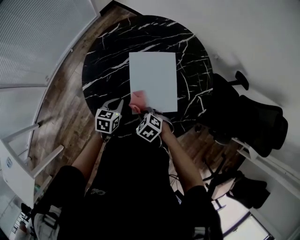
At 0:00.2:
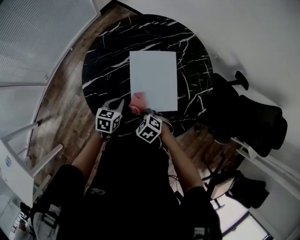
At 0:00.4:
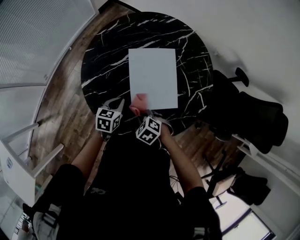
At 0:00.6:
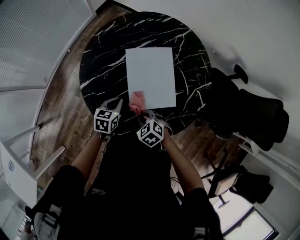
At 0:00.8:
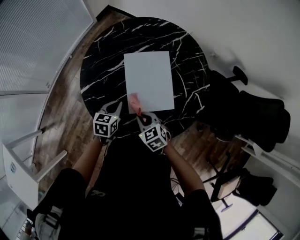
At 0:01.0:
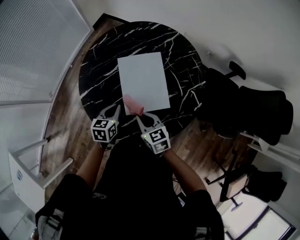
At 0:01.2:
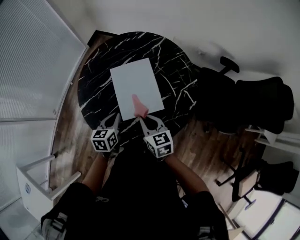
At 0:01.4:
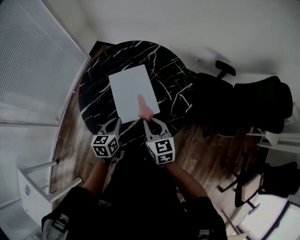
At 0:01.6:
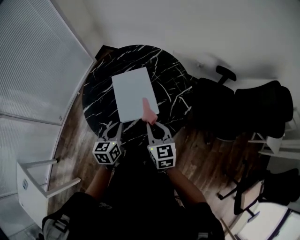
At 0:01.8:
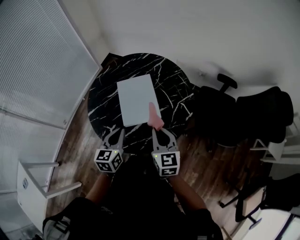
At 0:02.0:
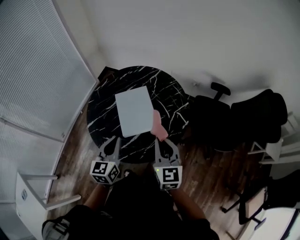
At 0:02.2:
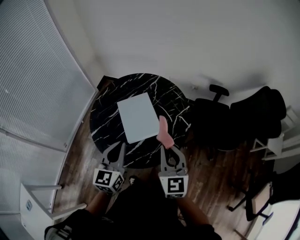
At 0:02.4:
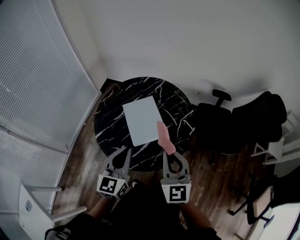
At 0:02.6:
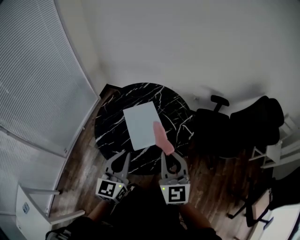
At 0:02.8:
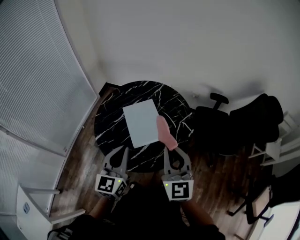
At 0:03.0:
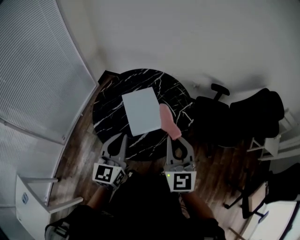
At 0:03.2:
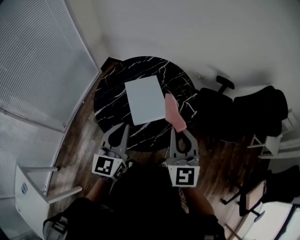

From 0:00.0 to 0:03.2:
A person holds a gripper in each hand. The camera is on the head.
From 0:00.0 to 0:01.6: The left gripper shifts some 20 cm upward, backward and to the right. The right gripper is displaced upward and to the right by roughly 25 cm, and tips its fingers upward by approximately 50 degrees.
From 0:01.6 to 0:03.2: The right gripper moves upward and backward, some 20 cm, and swivels approximately 30 degrees; the left gripper heads upward, covering about 20 cm, and turns by about 30 degrees.

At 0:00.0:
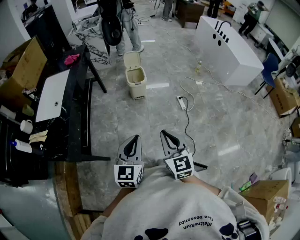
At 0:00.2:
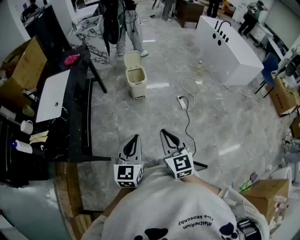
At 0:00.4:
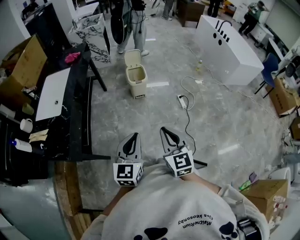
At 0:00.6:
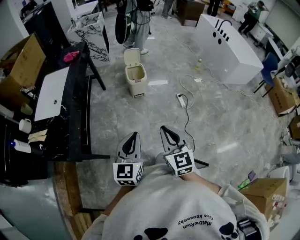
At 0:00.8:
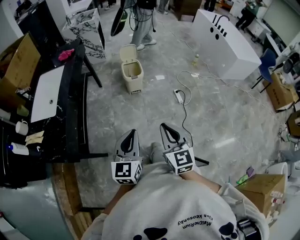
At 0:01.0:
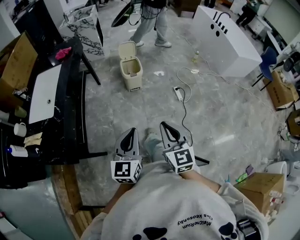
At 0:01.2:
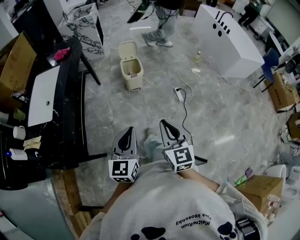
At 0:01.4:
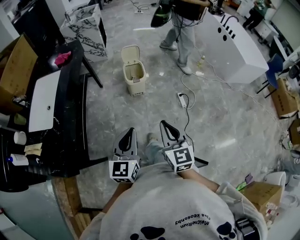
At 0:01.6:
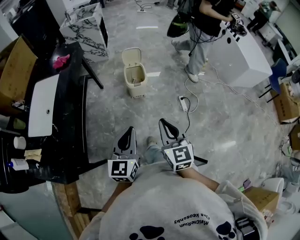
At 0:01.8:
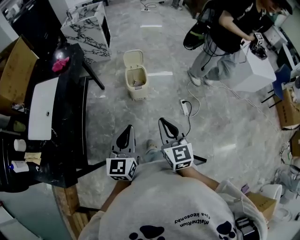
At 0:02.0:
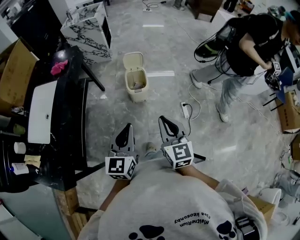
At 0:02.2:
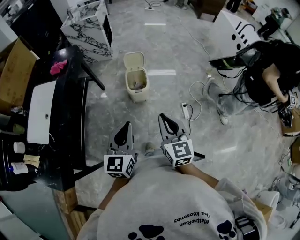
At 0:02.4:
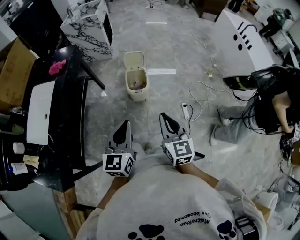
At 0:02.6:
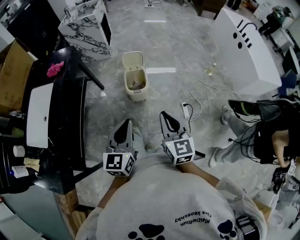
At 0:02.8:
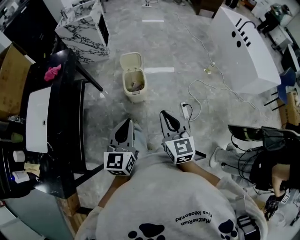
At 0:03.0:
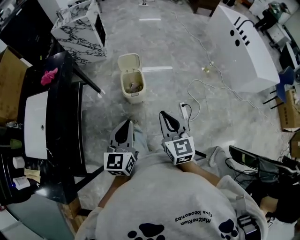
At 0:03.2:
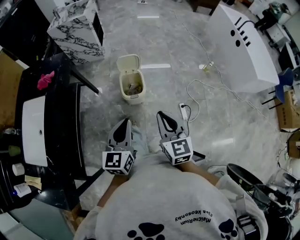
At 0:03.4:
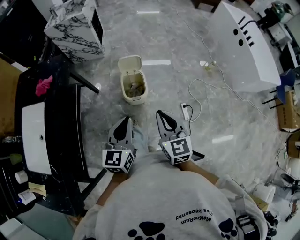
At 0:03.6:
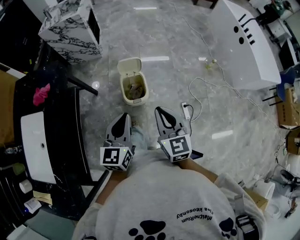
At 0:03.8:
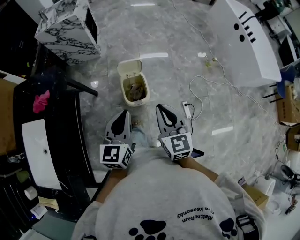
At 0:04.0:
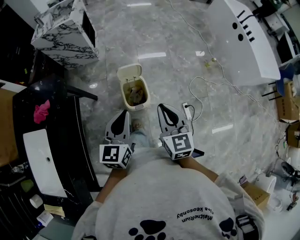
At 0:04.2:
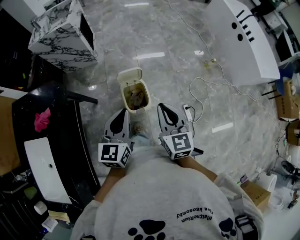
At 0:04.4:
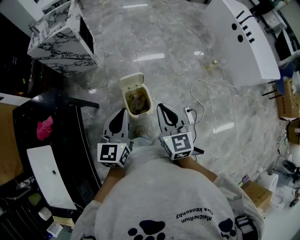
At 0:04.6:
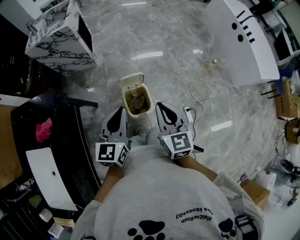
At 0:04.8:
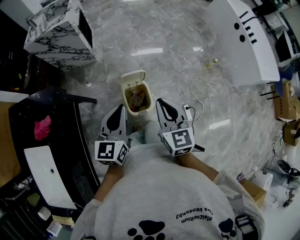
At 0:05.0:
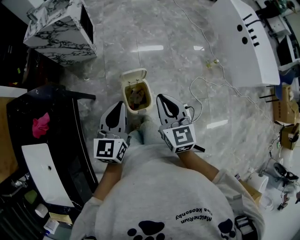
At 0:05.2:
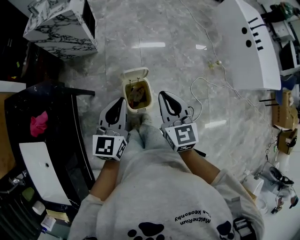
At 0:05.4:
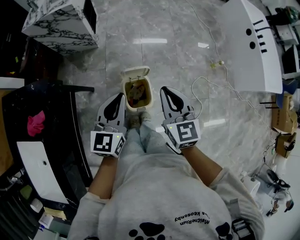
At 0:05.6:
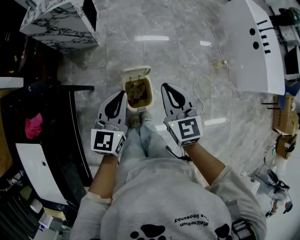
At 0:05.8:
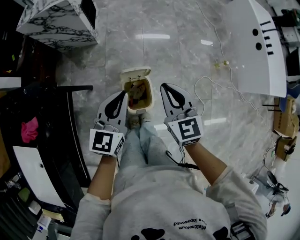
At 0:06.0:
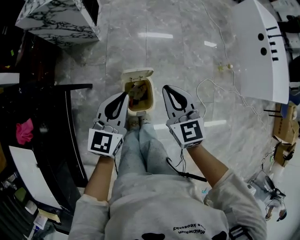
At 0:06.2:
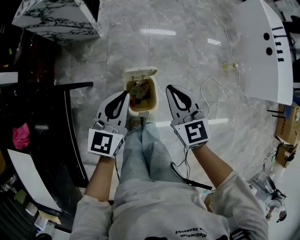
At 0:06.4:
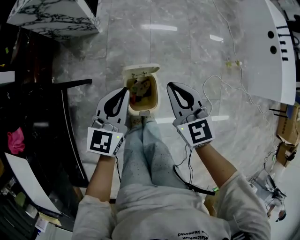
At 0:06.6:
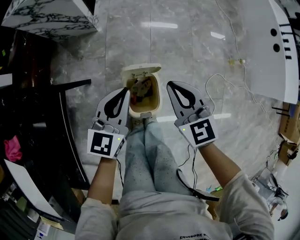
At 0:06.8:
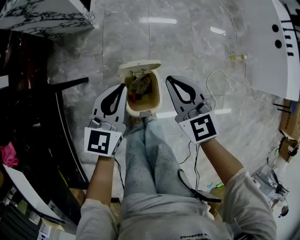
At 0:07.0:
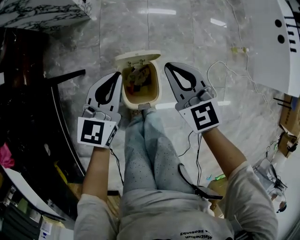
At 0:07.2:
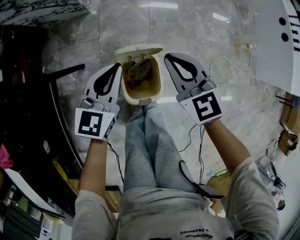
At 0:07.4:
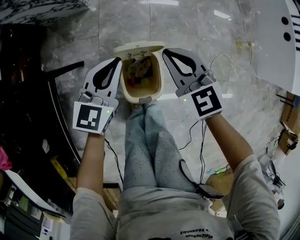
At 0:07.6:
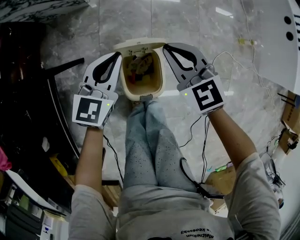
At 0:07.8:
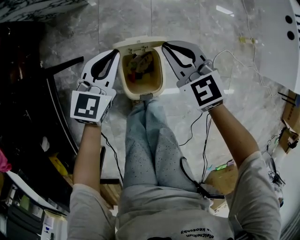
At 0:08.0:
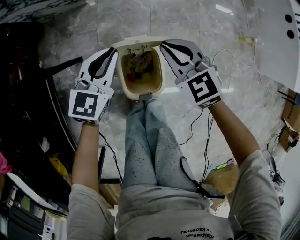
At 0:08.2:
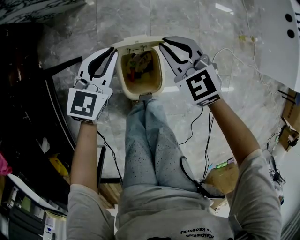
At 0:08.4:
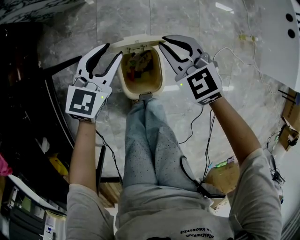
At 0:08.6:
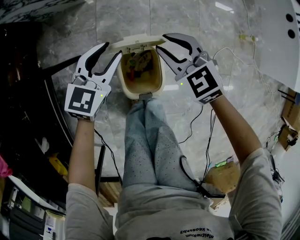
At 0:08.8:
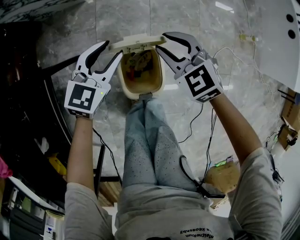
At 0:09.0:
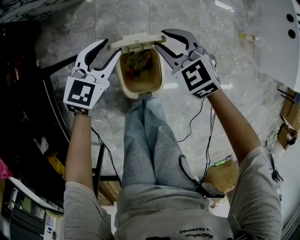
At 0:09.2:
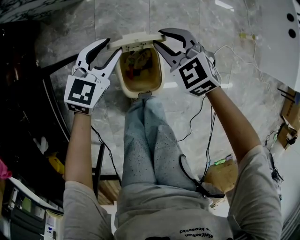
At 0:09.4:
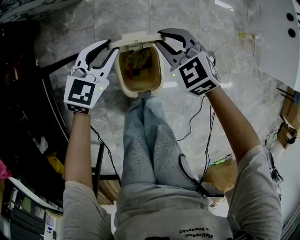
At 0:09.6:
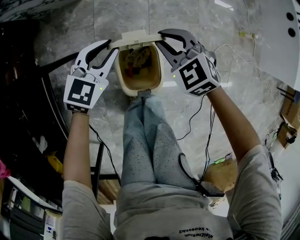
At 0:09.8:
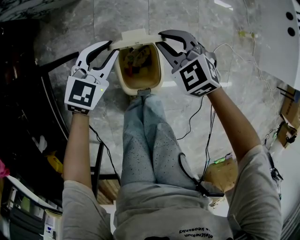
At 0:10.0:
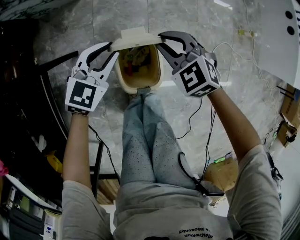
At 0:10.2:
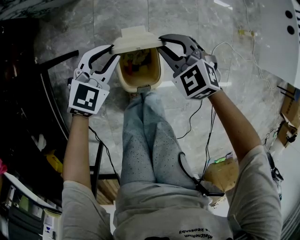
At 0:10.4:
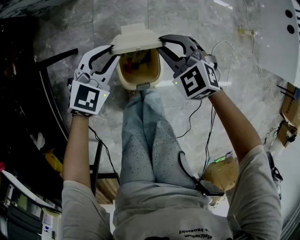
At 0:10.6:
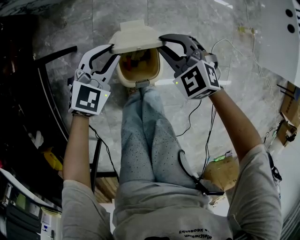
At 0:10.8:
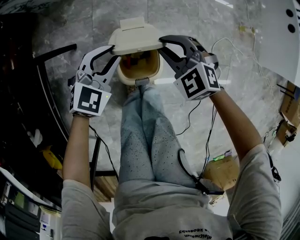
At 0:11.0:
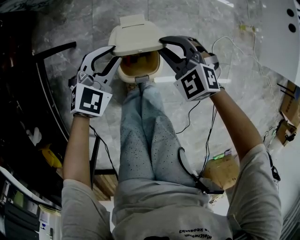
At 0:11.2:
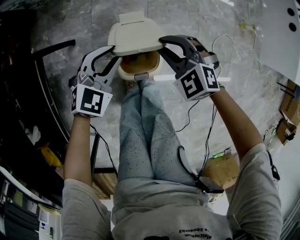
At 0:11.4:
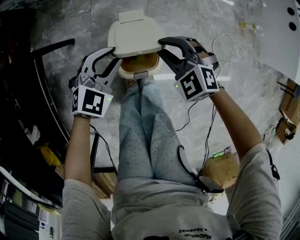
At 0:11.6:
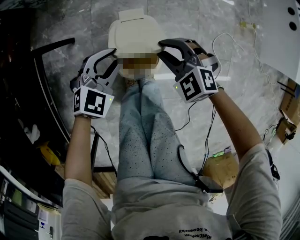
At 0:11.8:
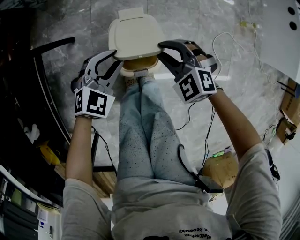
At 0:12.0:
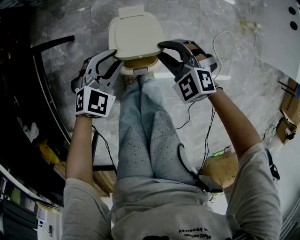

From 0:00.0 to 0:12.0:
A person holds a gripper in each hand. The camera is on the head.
From 0:00.0 to 0:01.6: The two grippers go approximately 25 cm forward.
From 0:01.6 to 0:03.0: The two grippers go approximately 20 cm forward.
From 0:03.0 to 0:04.4: The grippers both shift forward by approximately 35 cm.
From 0:04.4 to 0:06.0: The grippers both shift forward and downward by some 20 cm.
From 0:06.0 to 0:07.6: The grippers both shift downward and forward by roughly 25 cm. The right gripper swivels about 20 degrees.
From 0:07.6 to 0:09.0: Both grippers travel together downward, some 5 cm. The left gripper opens its fingers. Meanwhile the right gripper opens up.
From 0:09.0 to 0:10.4: Both grippers travel together backward, some 5 cm.
From 0:10.4 to 0:12.0: Both grippers travel together backward, some 10 cm.

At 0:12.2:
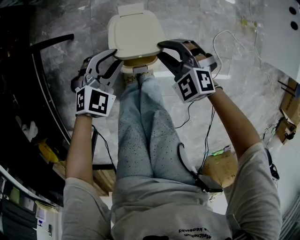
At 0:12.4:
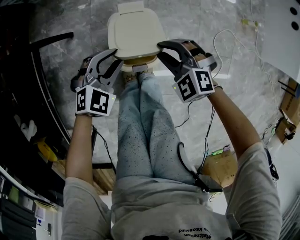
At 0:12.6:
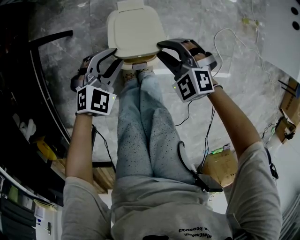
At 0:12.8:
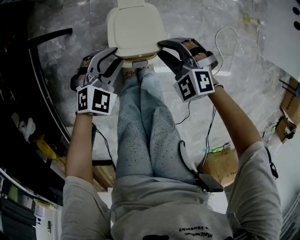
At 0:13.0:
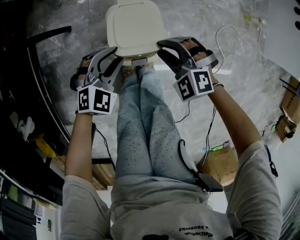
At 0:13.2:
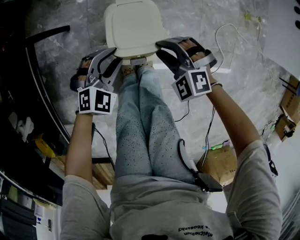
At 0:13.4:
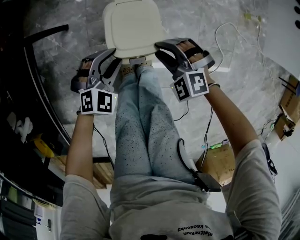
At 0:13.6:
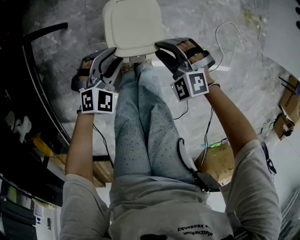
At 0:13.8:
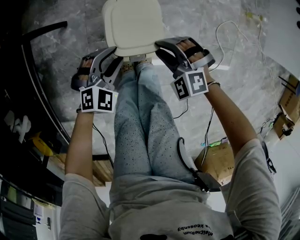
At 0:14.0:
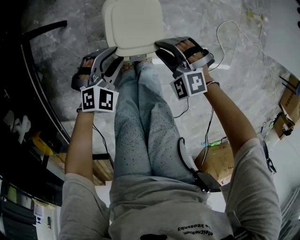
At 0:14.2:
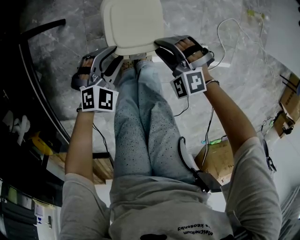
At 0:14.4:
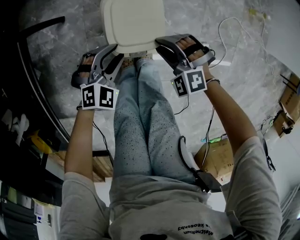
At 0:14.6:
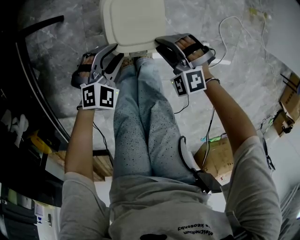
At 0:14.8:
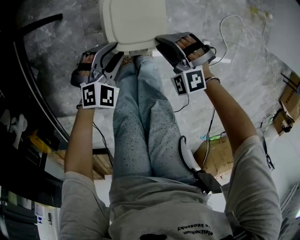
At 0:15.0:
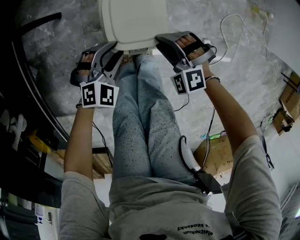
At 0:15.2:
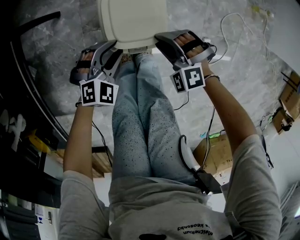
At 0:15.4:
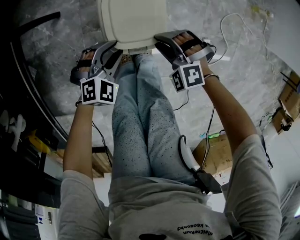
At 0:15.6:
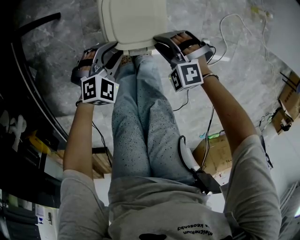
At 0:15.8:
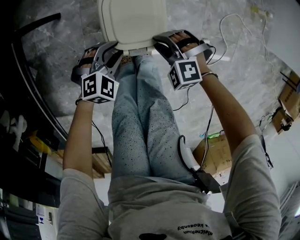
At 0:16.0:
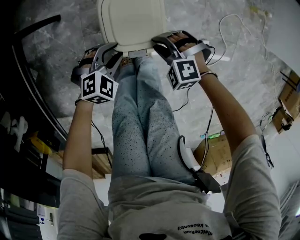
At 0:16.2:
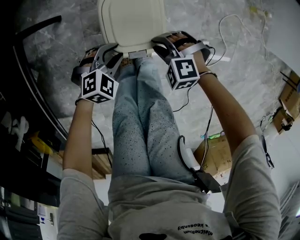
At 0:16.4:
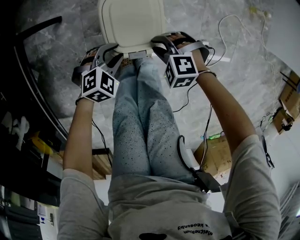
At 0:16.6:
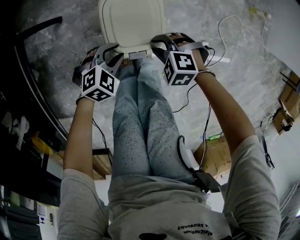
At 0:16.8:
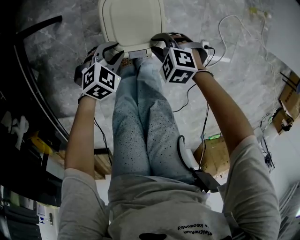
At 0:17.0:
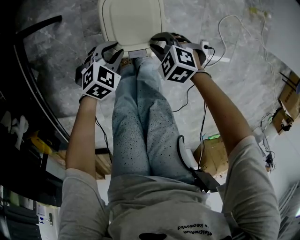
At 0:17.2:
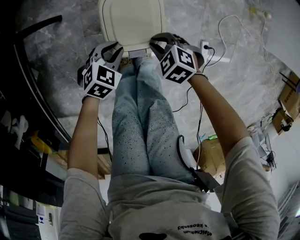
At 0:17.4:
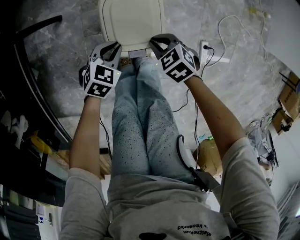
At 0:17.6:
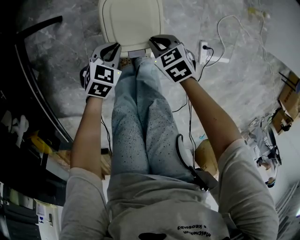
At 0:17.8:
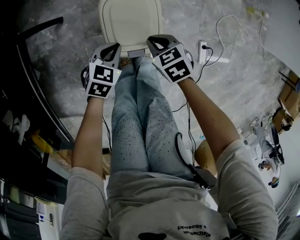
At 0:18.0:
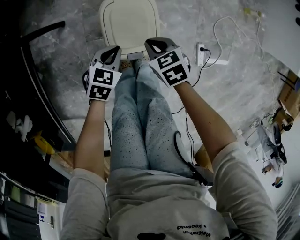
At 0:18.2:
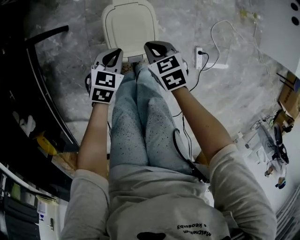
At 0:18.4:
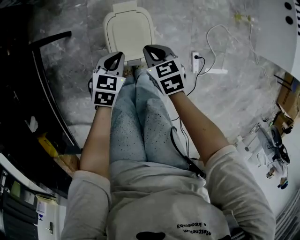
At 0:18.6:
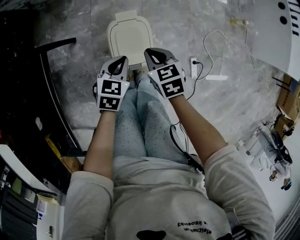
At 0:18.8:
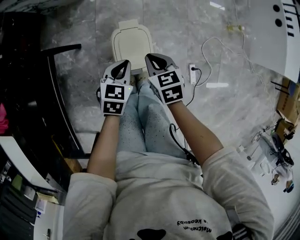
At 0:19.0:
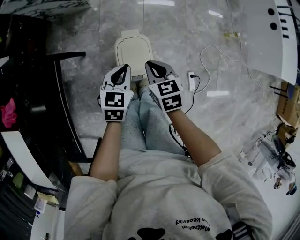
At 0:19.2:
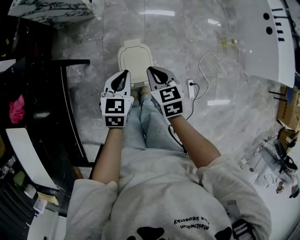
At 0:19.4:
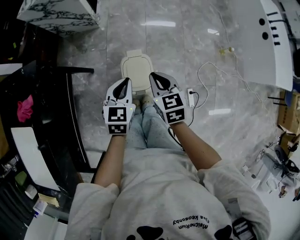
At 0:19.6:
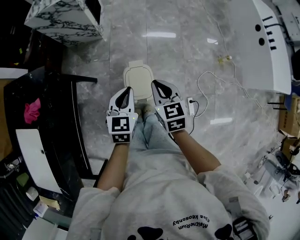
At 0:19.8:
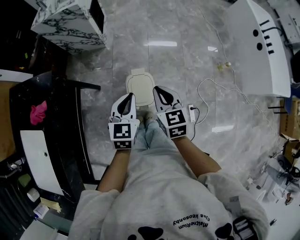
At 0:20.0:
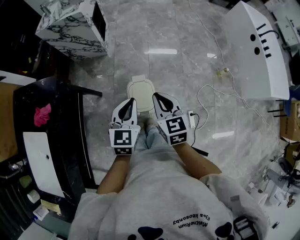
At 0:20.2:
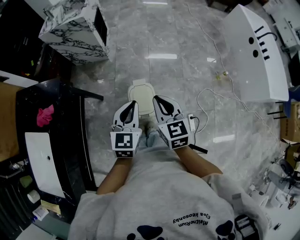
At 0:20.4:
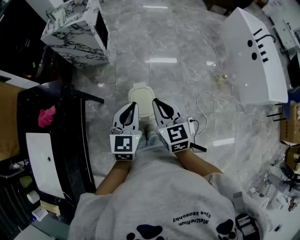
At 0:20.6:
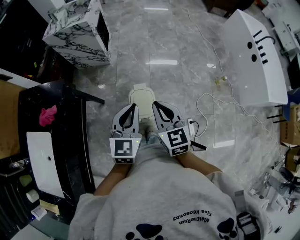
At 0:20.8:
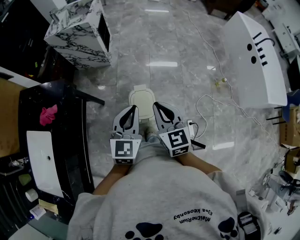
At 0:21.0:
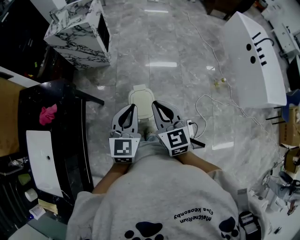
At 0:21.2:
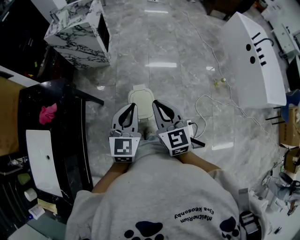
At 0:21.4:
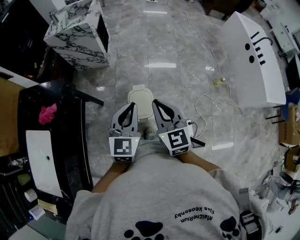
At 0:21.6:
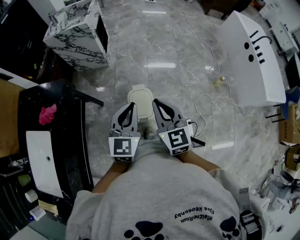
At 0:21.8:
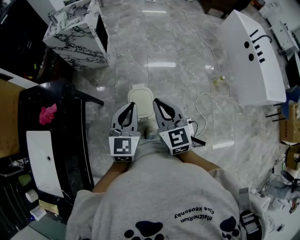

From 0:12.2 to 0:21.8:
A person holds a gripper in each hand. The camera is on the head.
From 0:12.2 to 0:13.8: Both grippers travel together downward and backward, some 10 cm.
From 0:13.8 to 0:15.4: Both grippers move downward, roughly 10 cm.
From 0:15.4 to 0:17.0: The left gripper changes its angle by some 20 degrees. Meanwhile the right gripper rotates about 30 degrees.
From 0:17.0 to 0:18.6: Both grippers move upward, roughly 20 cm. The left gripper swivels approximately 30 degrees, and closes up. The right gripper rotates around the line of its fingers by roughly 40 degrees, clockwise from behind.
From 0:18.6 to 0:20.2: Both grippers move upward, approximately 35 cm. The right gripper changes its angle by about 30 degrees; the left gripper changes its angle by about 30 degrees.
From 0:20.2 to 0:21.8: The right gripper changes place by approximately 5 cm; the left gripper shifts by about 5 cm.
